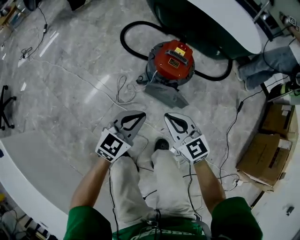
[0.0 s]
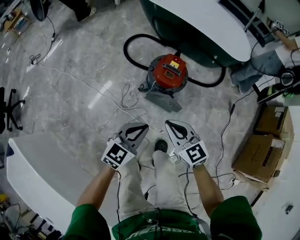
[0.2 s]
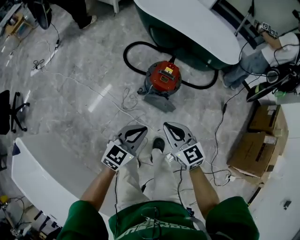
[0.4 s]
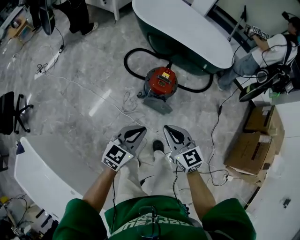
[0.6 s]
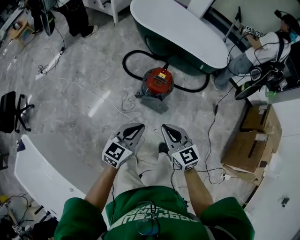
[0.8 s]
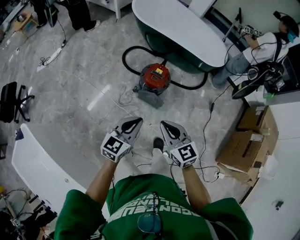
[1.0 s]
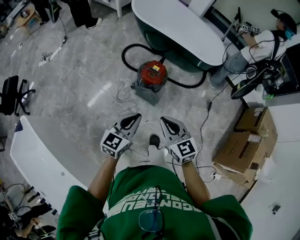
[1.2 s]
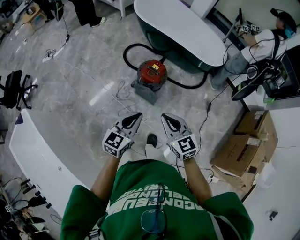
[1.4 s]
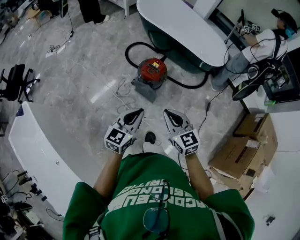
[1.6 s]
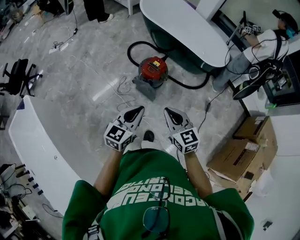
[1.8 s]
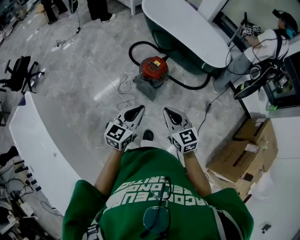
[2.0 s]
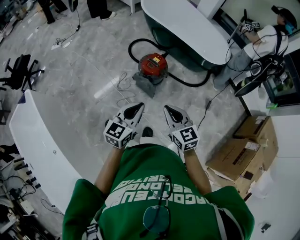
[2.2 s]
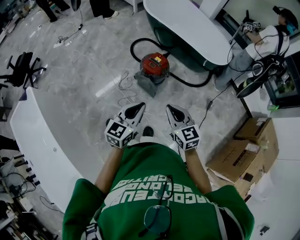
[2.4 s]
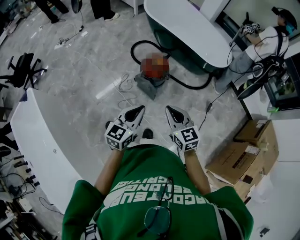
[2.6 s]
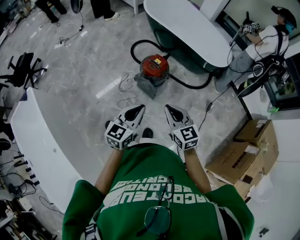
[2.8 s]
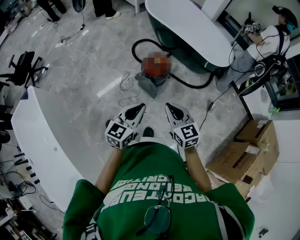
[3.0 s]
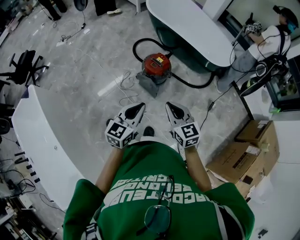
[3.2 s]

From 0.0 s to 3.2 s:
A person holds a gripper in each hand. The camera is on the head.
From 0.0 s to 1.6 s: The left gripper is displaced upward by about 40 cm, and turns by approximately 20 degrees. The right gripper is displaced upward and to the right by approximately 40 cm.
From 1.6 s to 3.2 s: The grippers both shift to the right by approximately 5 cm.

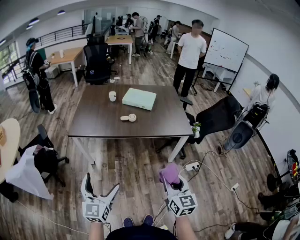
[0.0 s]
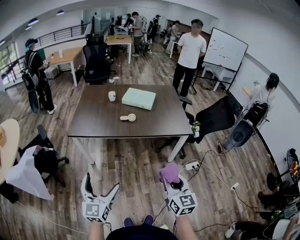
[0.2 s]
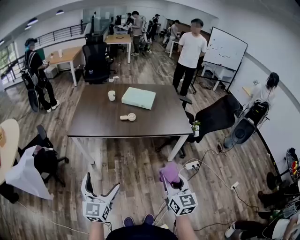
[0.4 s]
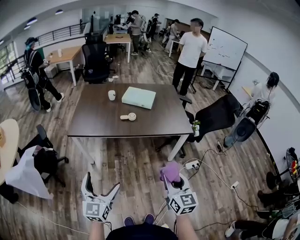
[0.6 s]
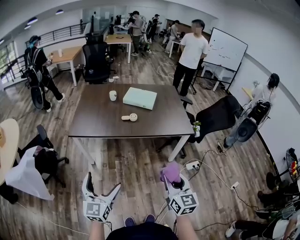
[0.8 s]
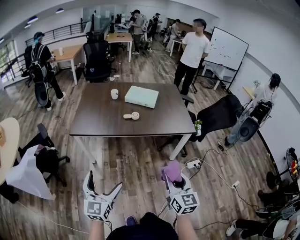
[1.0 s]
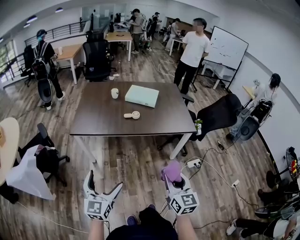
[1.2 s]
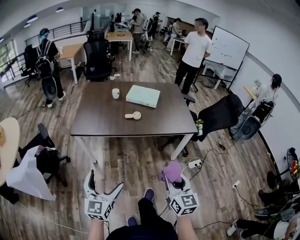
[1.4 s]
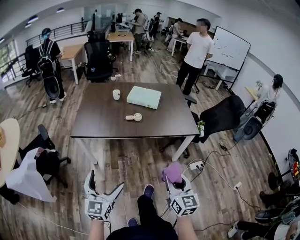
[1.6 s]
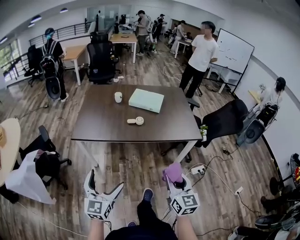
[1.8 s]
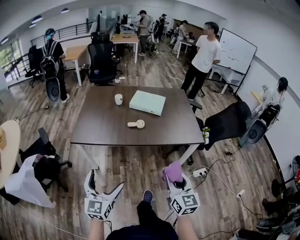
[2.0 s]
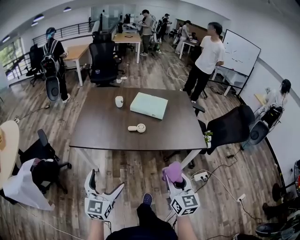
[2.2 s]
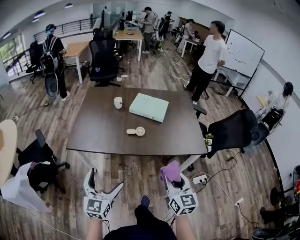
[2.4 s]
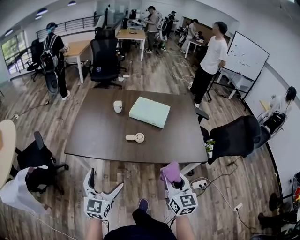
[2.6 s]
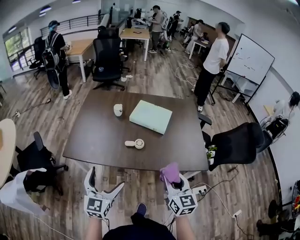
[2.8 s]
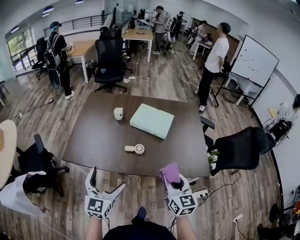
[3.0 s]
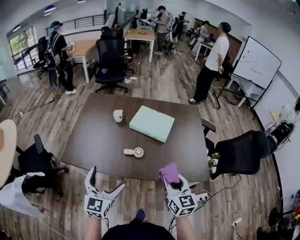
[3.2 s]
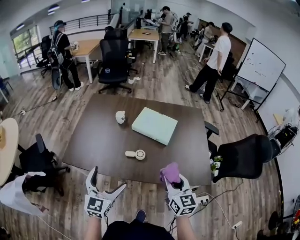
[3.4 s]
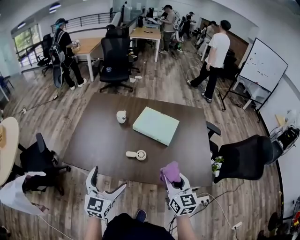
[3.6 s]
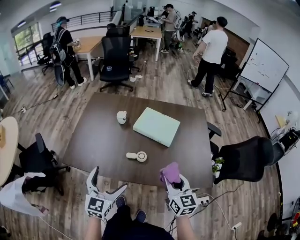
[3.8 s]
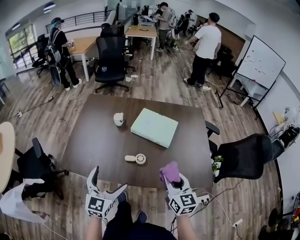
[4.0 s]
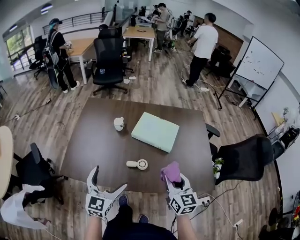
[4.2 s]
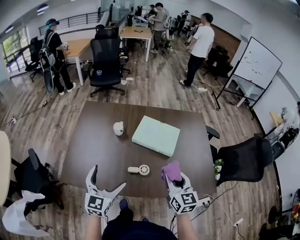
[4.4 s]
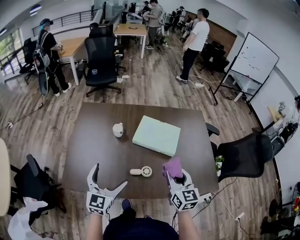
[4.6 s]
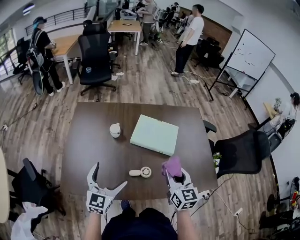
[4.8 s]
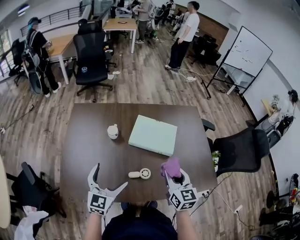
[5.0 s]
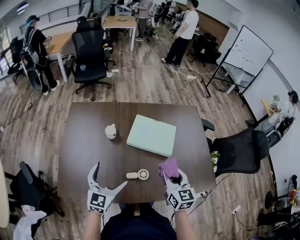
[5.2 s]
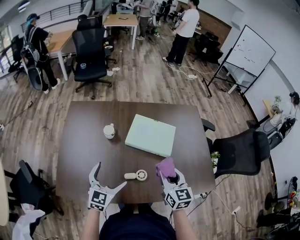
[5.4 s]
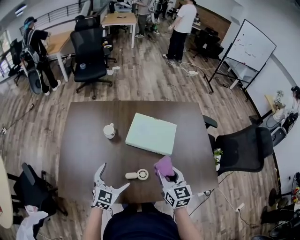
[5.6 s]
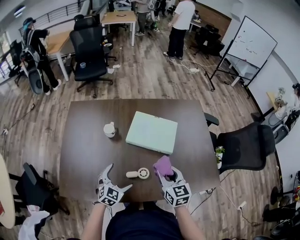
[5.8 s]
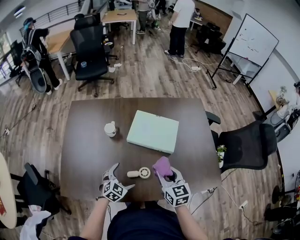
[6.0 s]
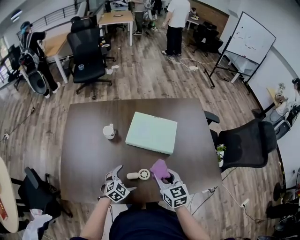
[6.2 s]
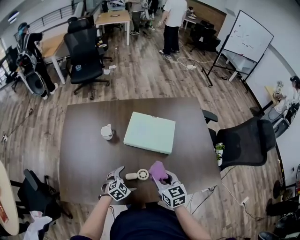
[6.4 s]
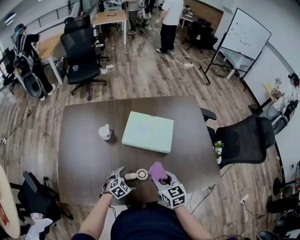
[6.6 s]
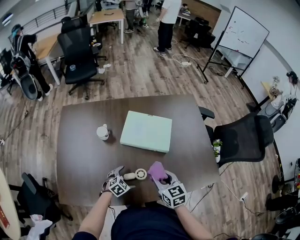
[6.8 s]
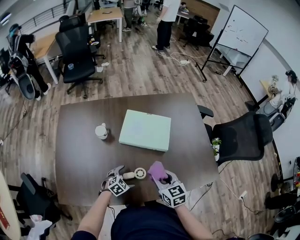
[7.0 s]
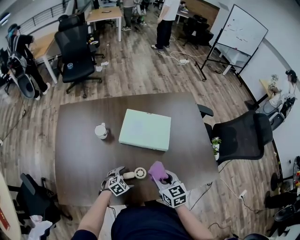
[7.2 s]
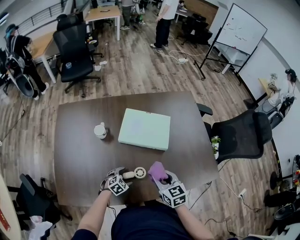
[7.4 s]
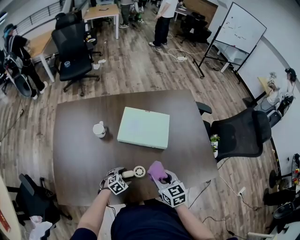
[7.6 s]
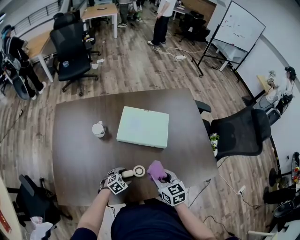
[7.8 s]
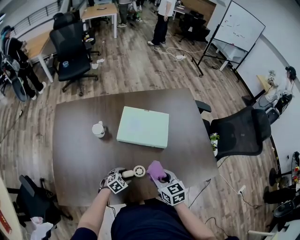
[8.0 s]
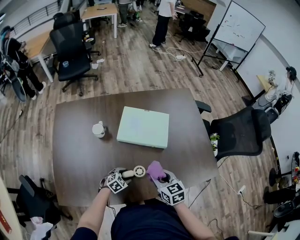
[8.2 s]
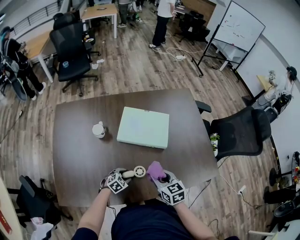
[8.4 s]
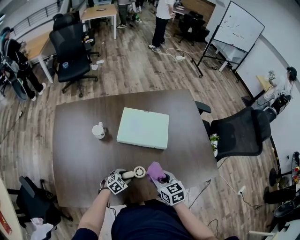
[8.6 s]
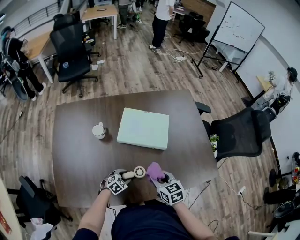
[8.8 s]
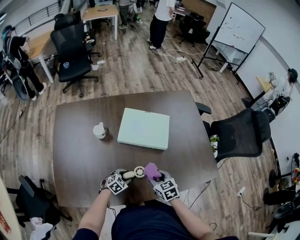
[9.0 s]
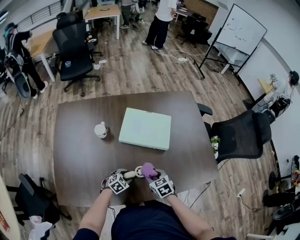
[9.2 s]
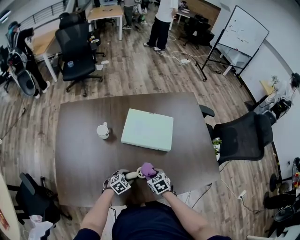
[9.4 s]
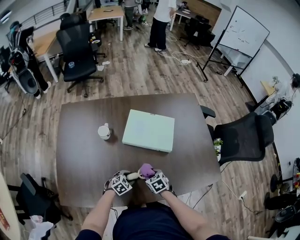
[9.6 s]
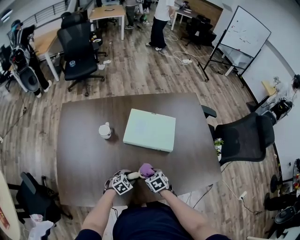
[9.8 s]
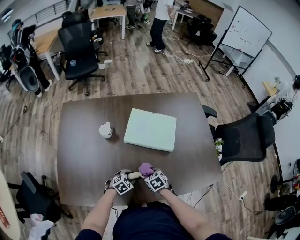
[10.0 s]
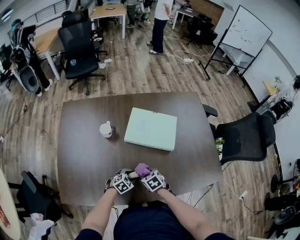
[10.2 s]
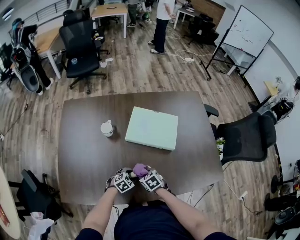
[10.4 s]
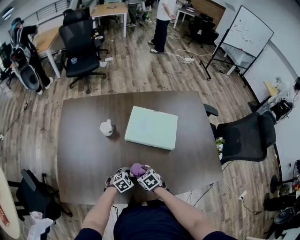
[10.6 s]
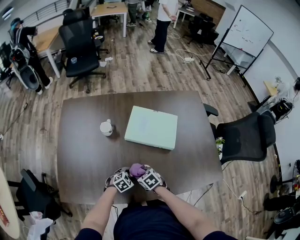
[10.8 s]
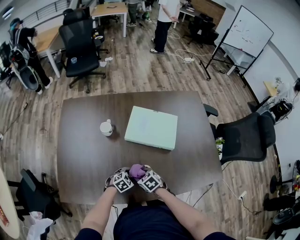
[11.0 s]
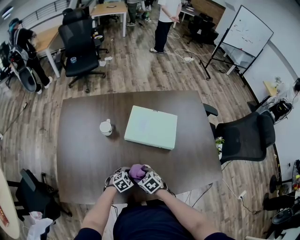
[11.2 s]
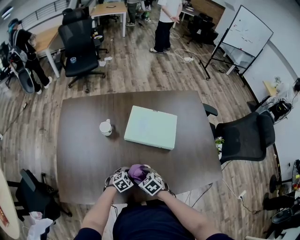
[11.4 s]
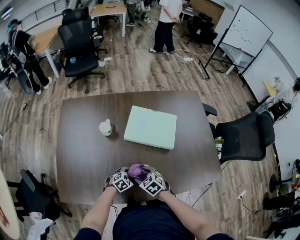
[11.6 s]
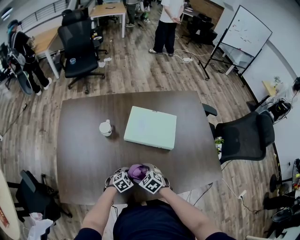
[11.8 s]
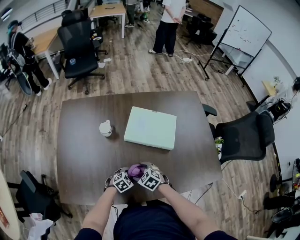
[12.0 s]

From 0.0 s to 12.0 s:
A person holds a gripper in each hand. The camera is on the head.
From 0.0 s to 1.6 s: The right gripper is displaced to the left by about 5 cm; the left gripper moves roughly 5 cm.
From 1.6 s to 3.0 s: The two grippers go approximately 40 cm forward.
From 3.0 s to 4.4 s: The grippers both shift forward by roughly 20 cm.
From 4.4 s to 6.0 s: The right gripper is displaced forward and downward by some 15 cm; the left gripper is displaced downward and forward by roughly 25 cm, and tilts its fingers approximately 30 degrees downward.
From 6.0 s to 7.6 s: The right gripper shifts roughly 5 cm downward. Meanwhile the left gripper is displaced downward by some 15 cm, changes its angle by about 20 degrees, and closes.
From 7.6 s to 9.0 s: The right gripper is displaced downward by about 10 cm.
From 9.0 s to 10.4 s: The right gripper moves downward and to the left, approximately 15 cm, and swivels about 20 degrees.
From 10.4 s to 12.0 s: The right gripper swivels about 20 degrees, and opens its fingers.

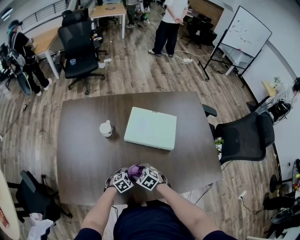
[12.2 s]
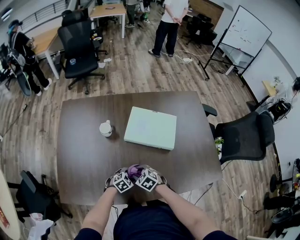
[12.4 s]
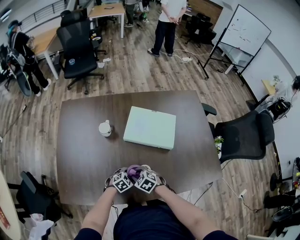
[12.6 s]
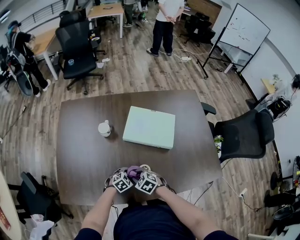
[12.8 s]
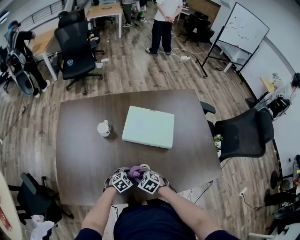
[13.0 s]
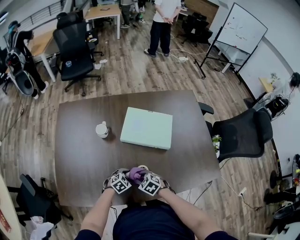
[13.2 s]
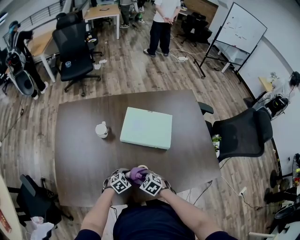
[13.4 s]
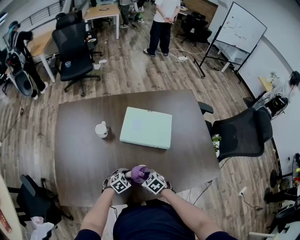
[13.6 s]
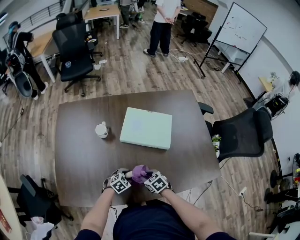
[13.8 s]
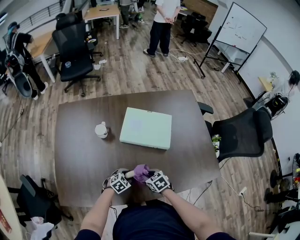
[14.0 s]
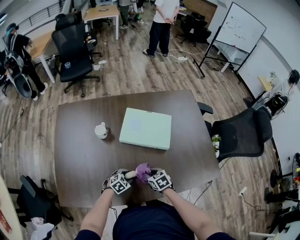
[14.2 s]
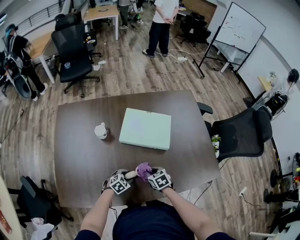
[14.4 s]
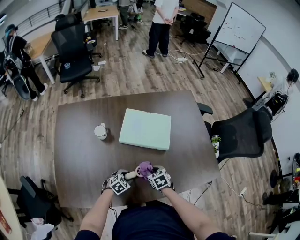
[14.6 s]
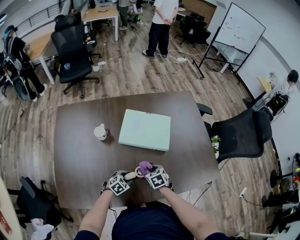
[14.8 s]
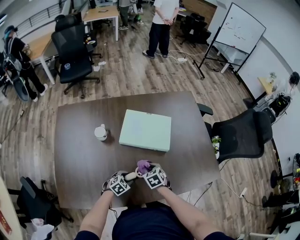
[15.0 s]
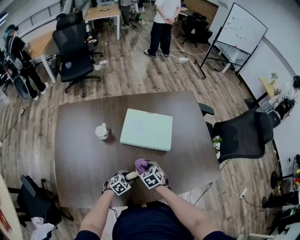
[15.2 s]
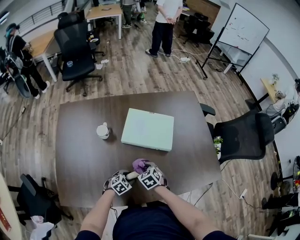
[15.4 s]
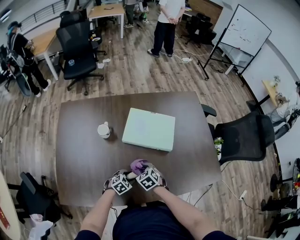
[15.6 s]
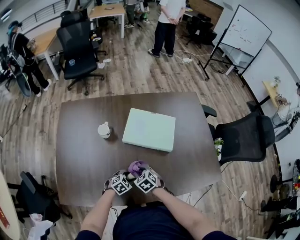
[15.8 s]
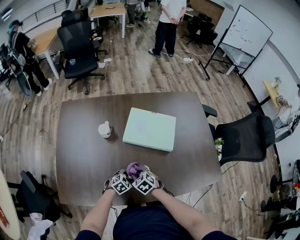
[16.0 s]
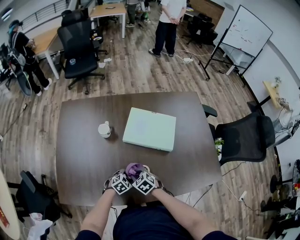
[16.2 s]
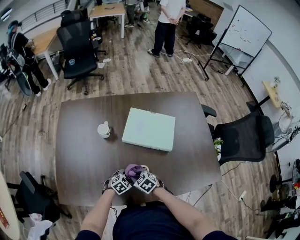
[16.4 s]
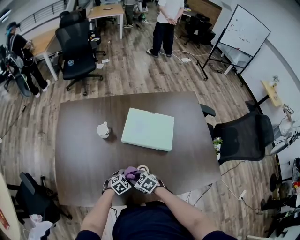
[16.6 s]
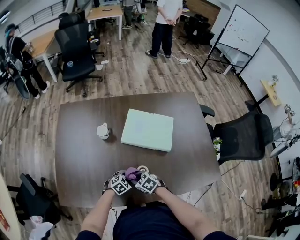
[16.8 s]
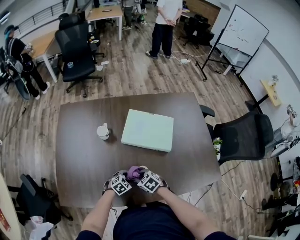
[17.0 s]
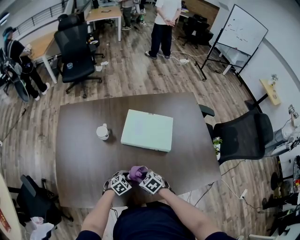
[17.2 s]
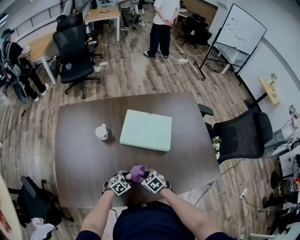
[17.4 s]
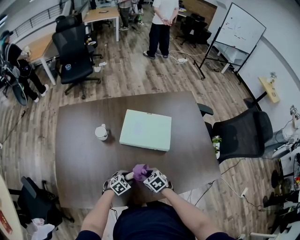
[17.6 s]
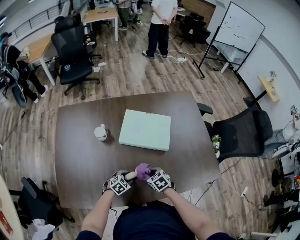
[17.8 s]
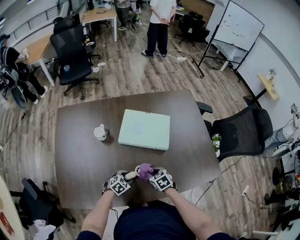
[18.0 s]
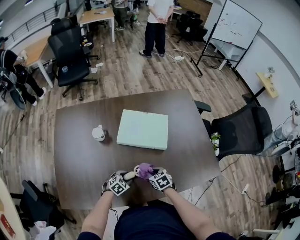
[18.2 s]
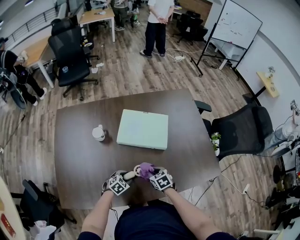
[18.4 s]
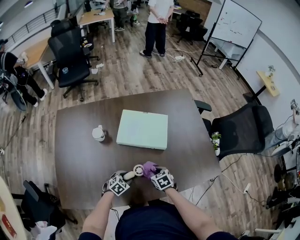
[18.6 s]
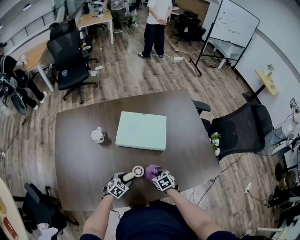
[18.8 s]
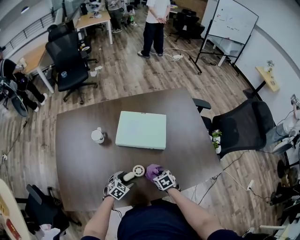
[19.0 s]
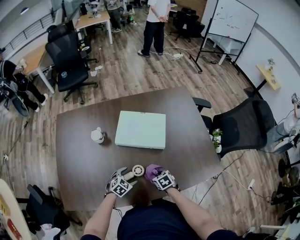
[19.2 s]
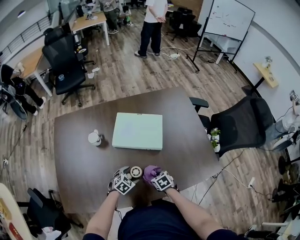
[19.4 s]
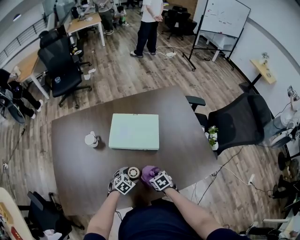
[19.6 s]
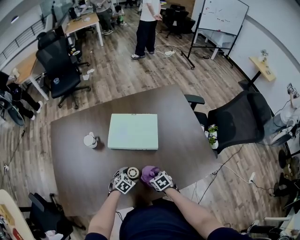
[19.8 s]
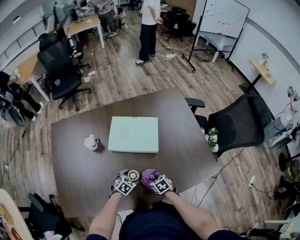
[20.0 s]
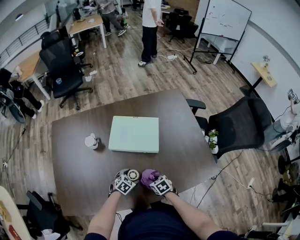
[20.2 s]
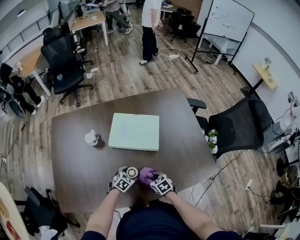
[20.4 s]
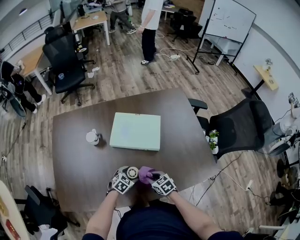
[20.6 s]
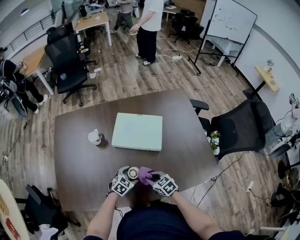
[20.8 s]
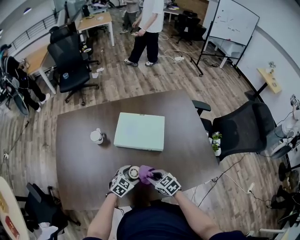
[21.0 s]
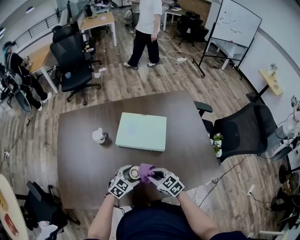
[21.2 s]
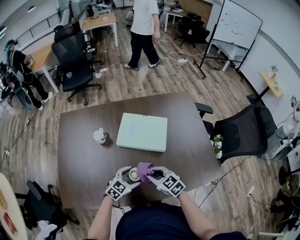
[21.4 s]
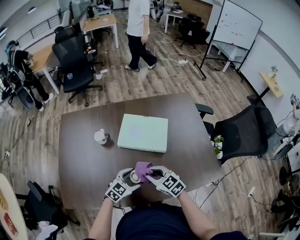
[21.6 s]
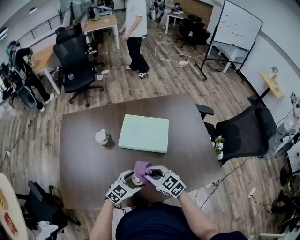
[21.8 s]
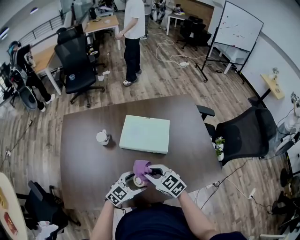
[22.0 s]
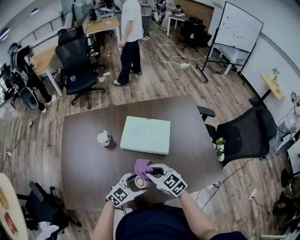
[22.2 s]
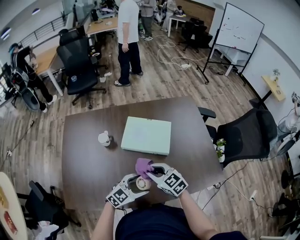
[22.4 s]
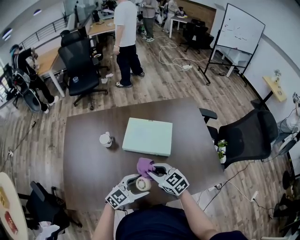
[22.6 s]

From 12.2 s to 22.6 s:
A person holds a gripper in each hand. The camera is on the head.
From 12.2 s to 13.6 s: The right gripper ends up about 5 cm from where it was, and closes.
From 13.6 s to 15.2 s: The right gripper goes about 10 cm forward.
From 15.2 s to 16.6 s: The right gripper ends up some 10 cm from where it was, and turns by roughly 30 degrees.
From 16.6 s to 18.2 s: The right gripper shifts by roughly 15 cm, and turns by some 30 degrees.
From 18.2 s to 19.6 s: Both grippers move to the right, some 5 cm.
From 19.6 s to 21.2 s: The two grippers go approximately 10 cm upward. The right gripper rotates some 30 degrees.
From 21.2 s to 22.6 s: The left gripper shifts approximately 10 cm upward and backward; the right gripper travels upward by roughly 10 cm.
